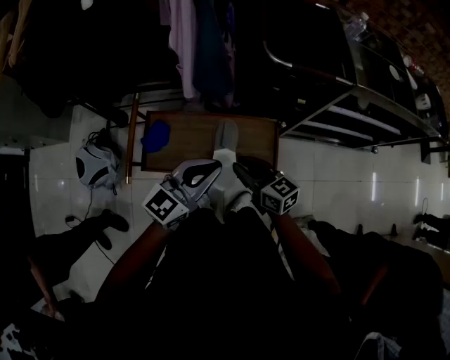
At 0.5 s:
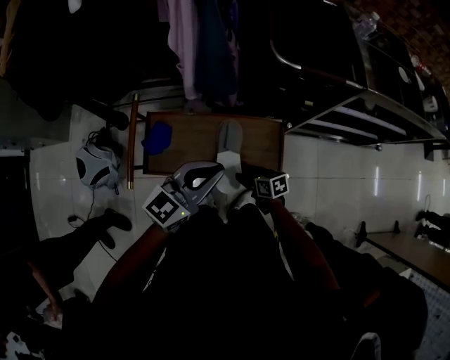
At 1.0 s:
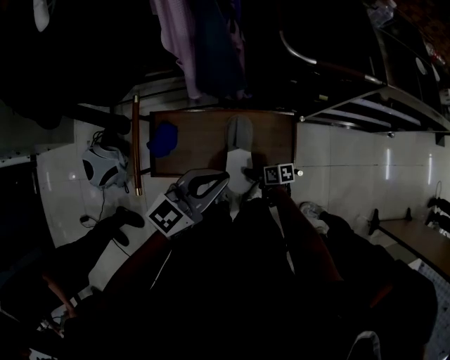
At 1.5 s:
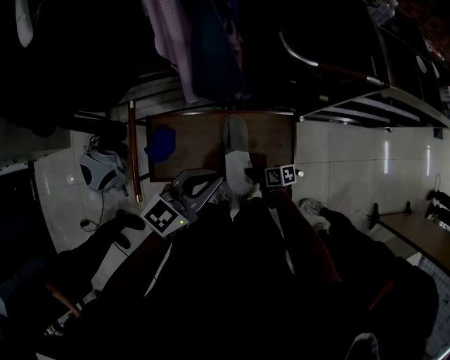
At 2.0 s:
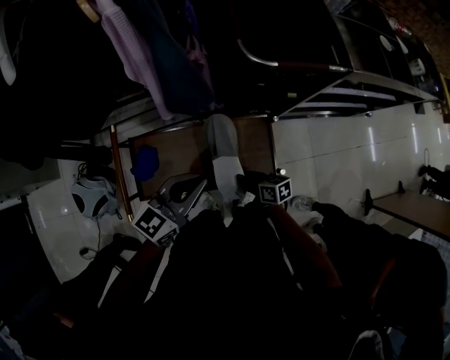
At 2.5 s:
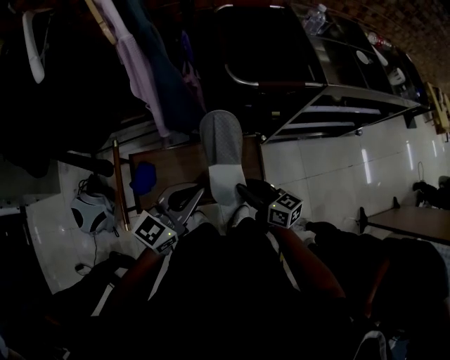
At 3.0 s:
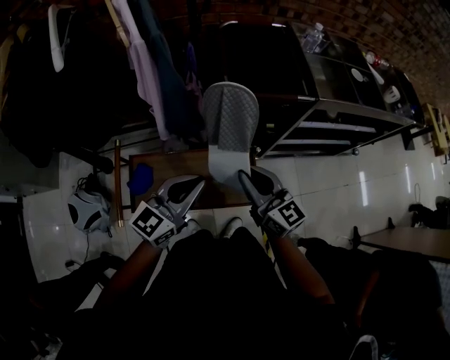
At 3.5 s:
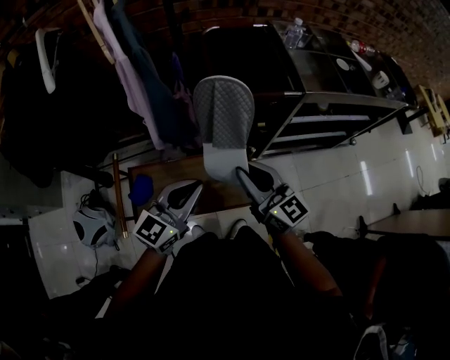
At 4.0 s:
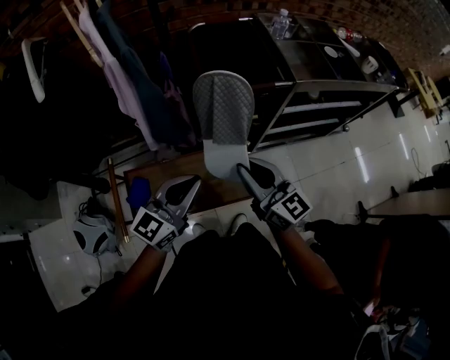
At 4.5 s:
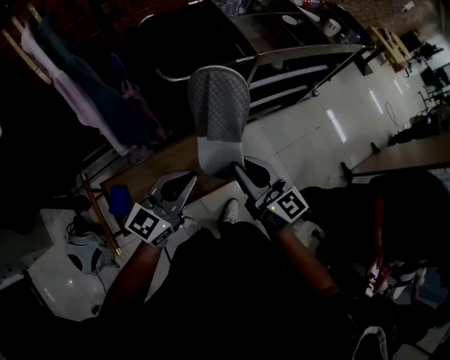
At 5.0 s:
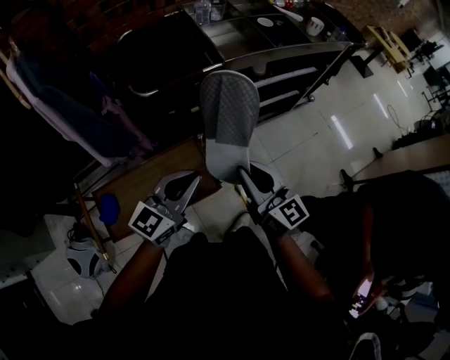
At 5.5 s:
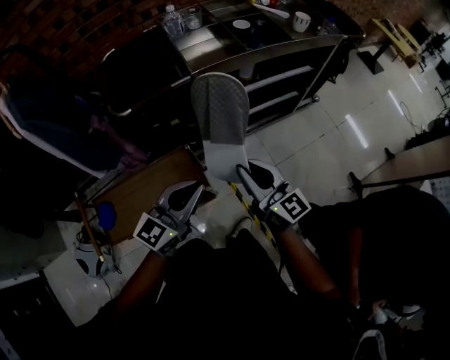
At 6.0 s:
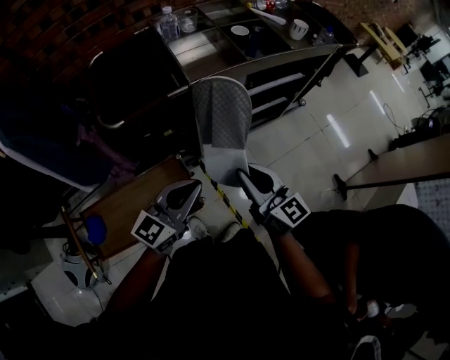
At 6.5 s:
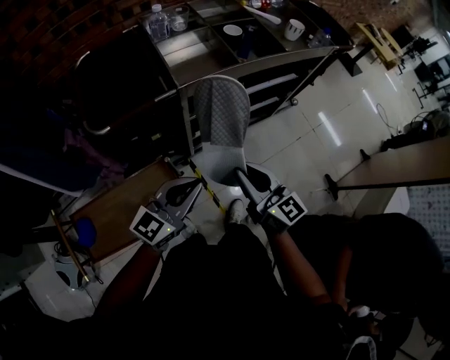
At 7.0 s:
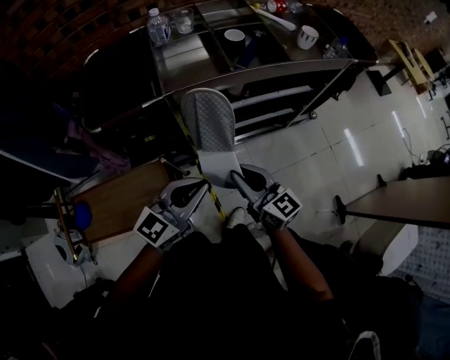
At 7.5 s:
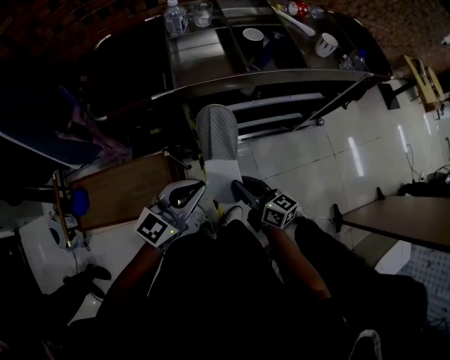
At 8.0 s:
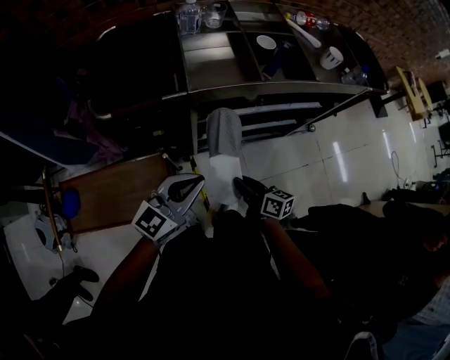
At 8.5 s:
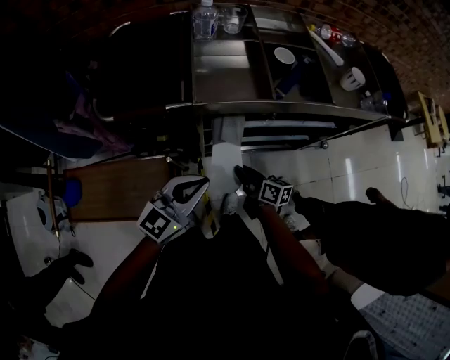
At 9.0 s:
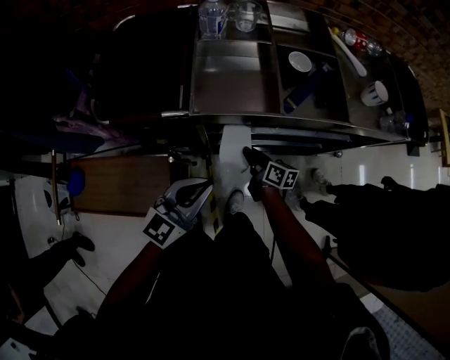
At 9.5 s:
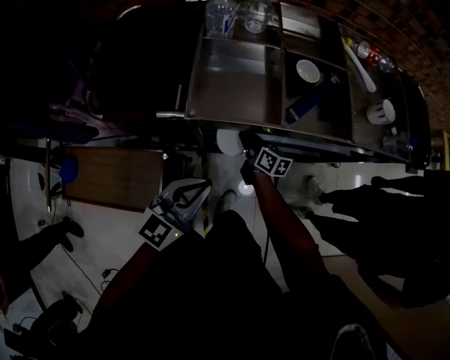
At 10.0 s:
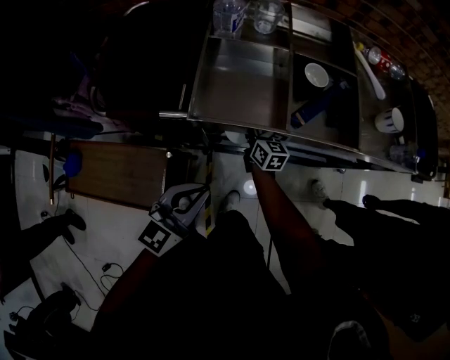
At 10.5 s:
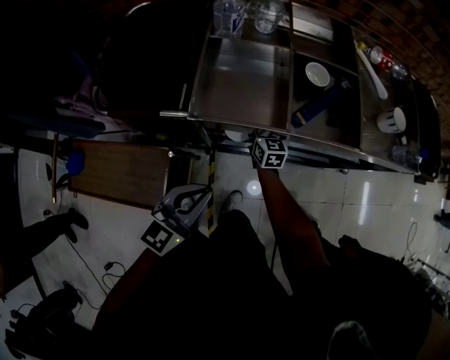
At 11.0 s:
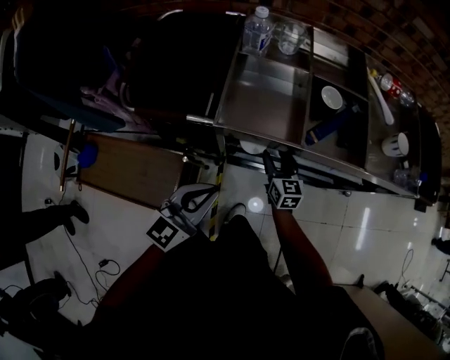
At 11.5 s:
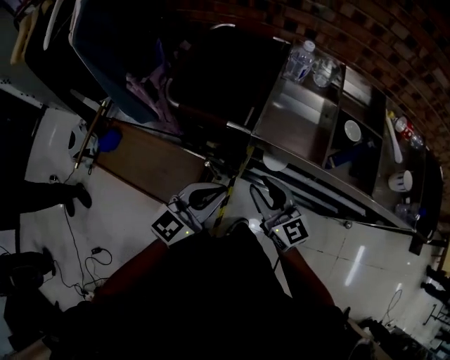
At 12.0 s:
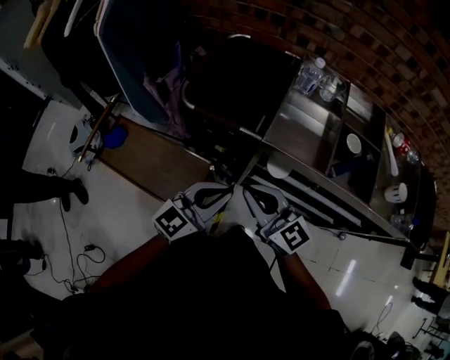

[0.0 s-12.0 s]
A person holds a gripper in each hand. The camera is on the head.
0.0 to 2.0 s: The right gripper shifts about 20 cm downward, rotates approximately 30 degrees, and opens, then closes again, while the left gripper ends up about 10 cm from where it was.
2.0 to 4.0 s: The right gripper goes roughly 35 cm upward, and tips its fingers upward by roughly 30 degrees. Meanwhile the left gripper shifts roughly 10 cm upward and to the right.
4.0 to 6.0 s: Both grippers travel together to the right, approximately 30 cm.
6.0 to 8.0 s: The right gripper shifts some 25 cm downward, forward and to the right, and changes its angle by some 40 degrees; the left gripper heads forward and to the right, covering some 10 cm.
8.0 to 10.0 s: The left gripper shifts roughly 10 cm forward and to the right, and rotates approximately 20 degrees, while the right gripper travels forward by about 35 cm, and swivels some 20 degrees.
10.0 to 12.0 s: The right gripper travels upward by some 30 cm, turns by approximately 50 degrees, and opens, then closes once more. The left gripper changes place by approximately 10 cm.

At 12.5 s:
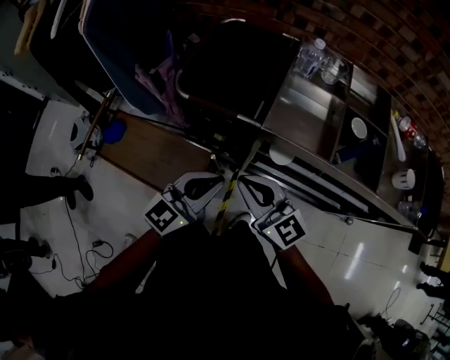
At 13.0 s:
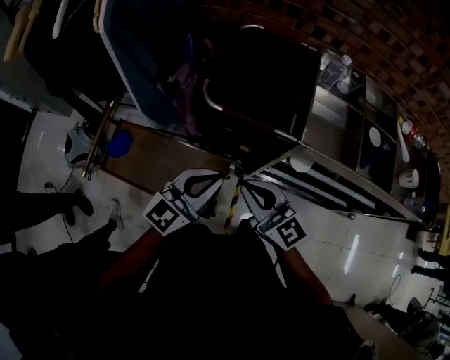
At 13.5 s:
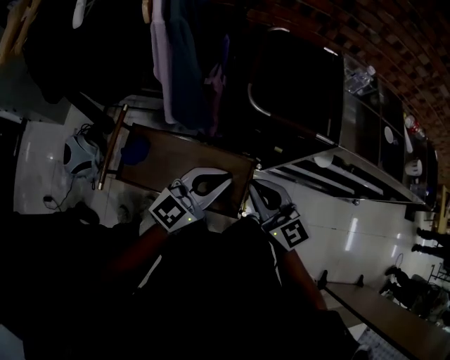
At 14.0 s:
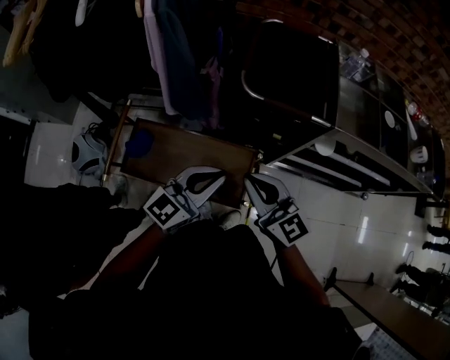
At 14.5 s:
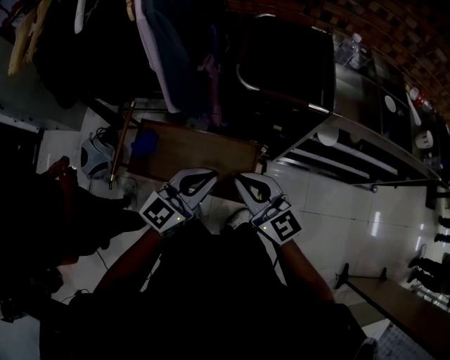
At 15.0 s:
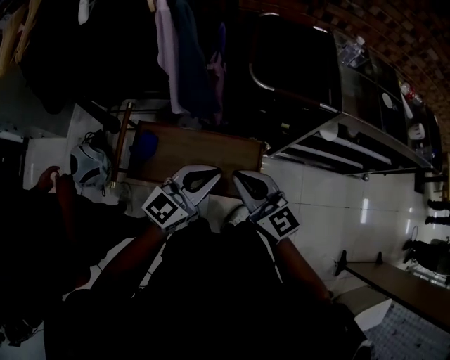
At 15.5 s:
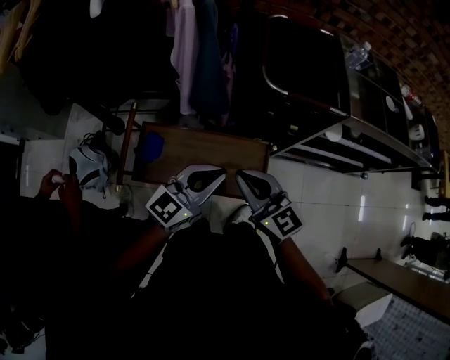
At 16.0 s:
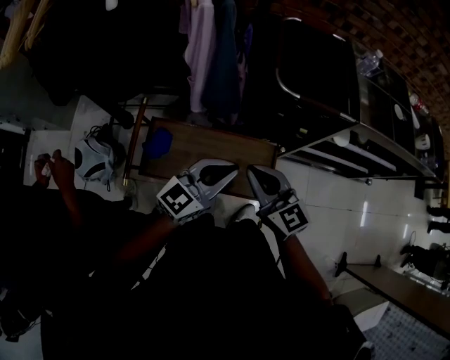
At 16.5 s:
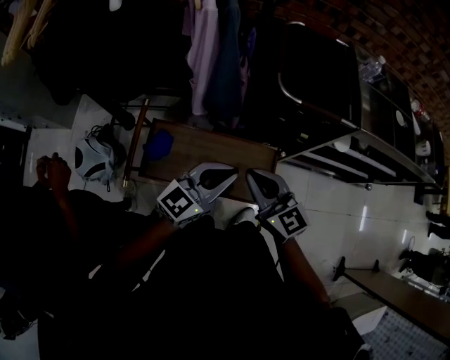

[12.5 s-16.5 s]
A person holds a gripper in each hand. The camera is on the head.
12.5 to 14.5 s: Both grippers travel together to the left, roughly 25 cm.
14.5 to 16.5 s: The grippers both shift to the left by approximately 10 cm.

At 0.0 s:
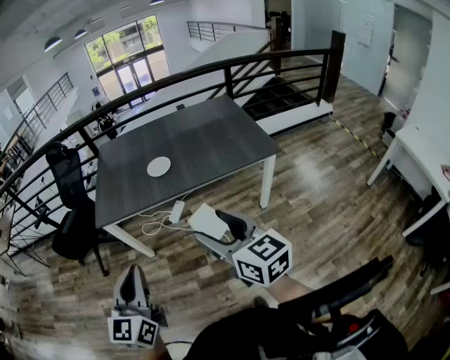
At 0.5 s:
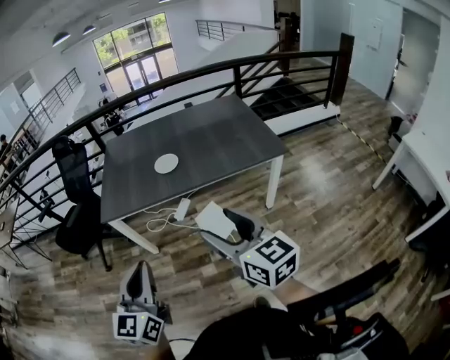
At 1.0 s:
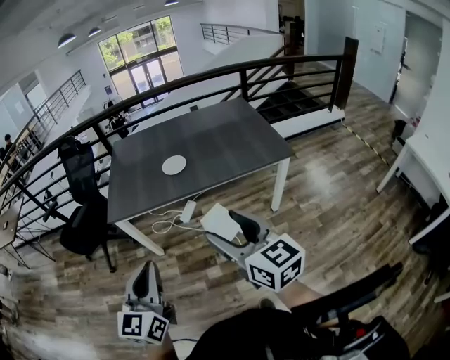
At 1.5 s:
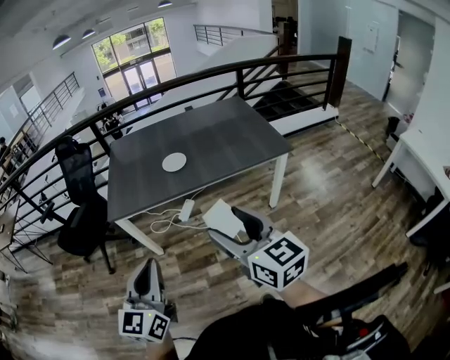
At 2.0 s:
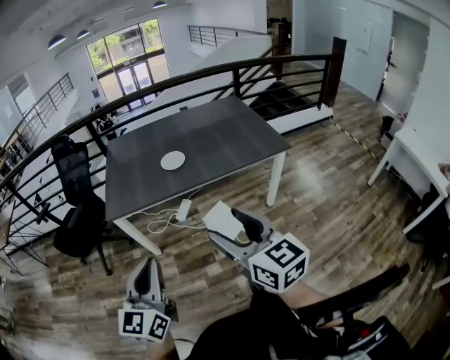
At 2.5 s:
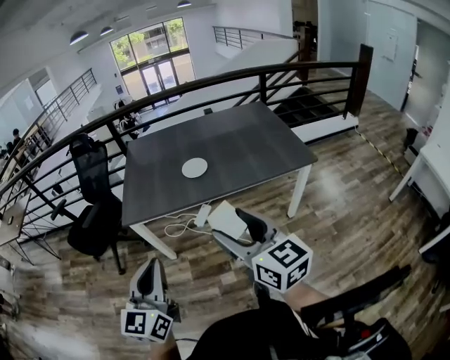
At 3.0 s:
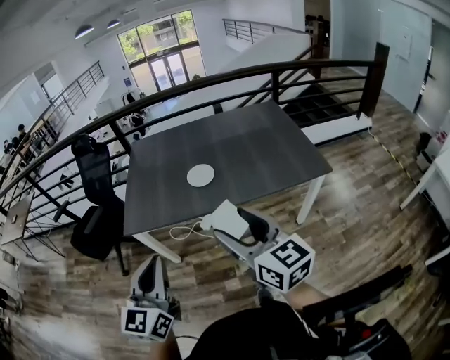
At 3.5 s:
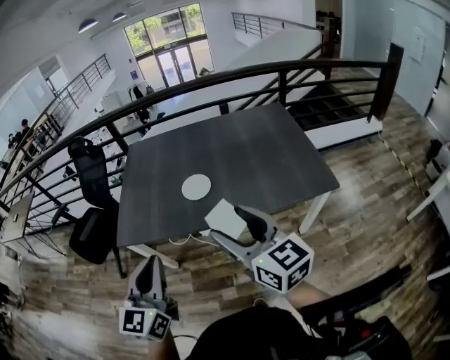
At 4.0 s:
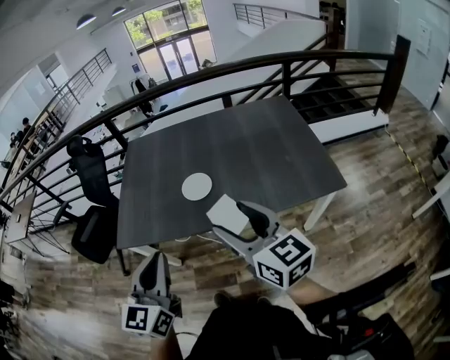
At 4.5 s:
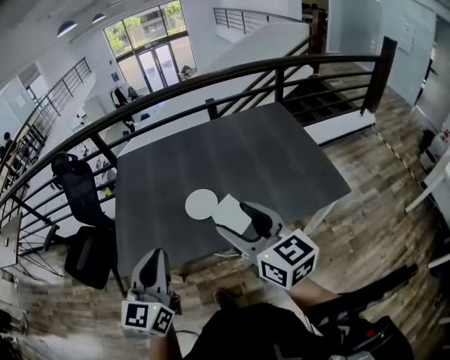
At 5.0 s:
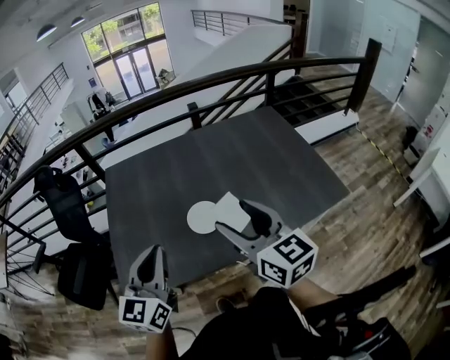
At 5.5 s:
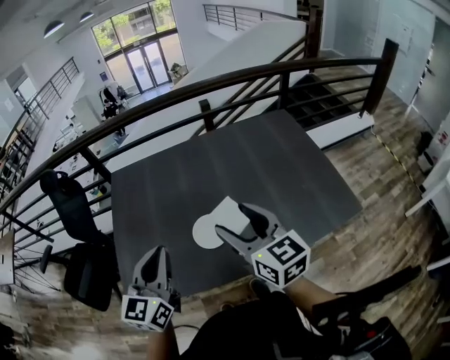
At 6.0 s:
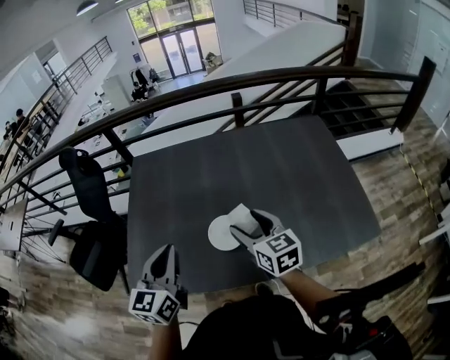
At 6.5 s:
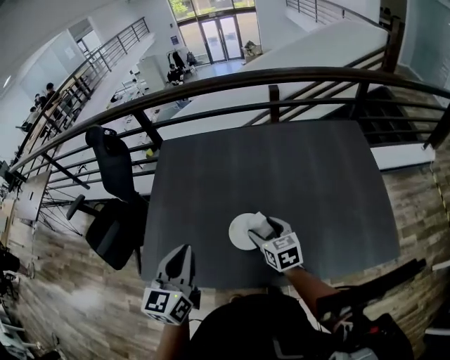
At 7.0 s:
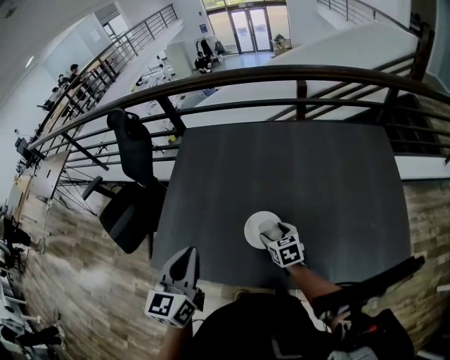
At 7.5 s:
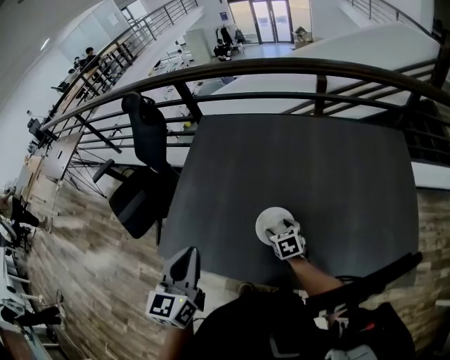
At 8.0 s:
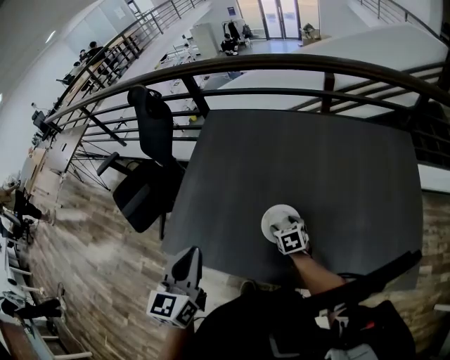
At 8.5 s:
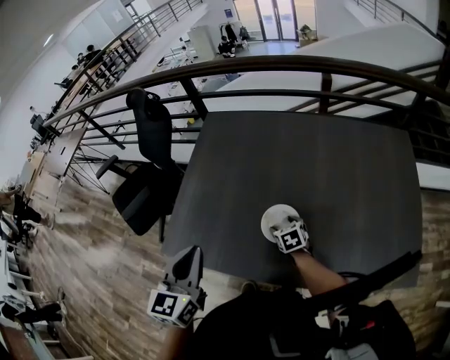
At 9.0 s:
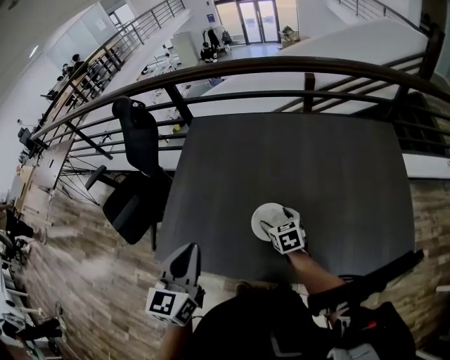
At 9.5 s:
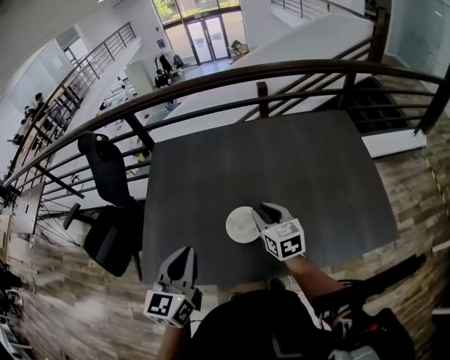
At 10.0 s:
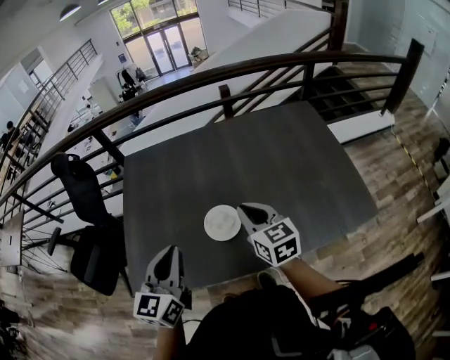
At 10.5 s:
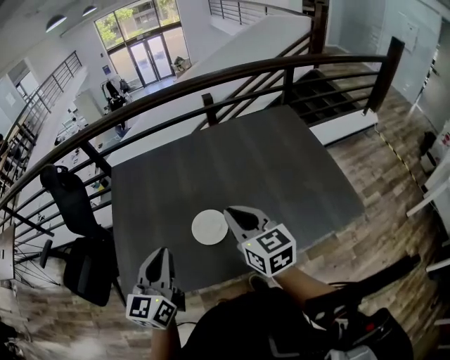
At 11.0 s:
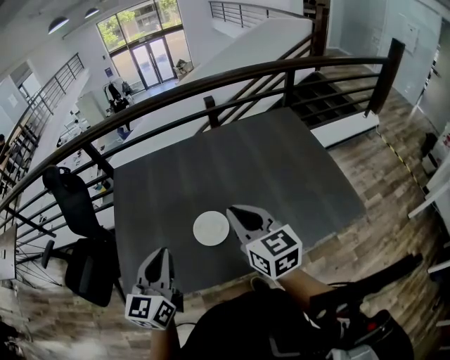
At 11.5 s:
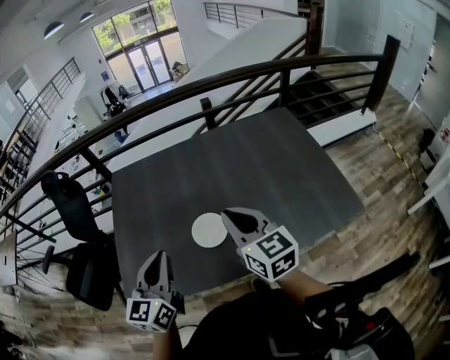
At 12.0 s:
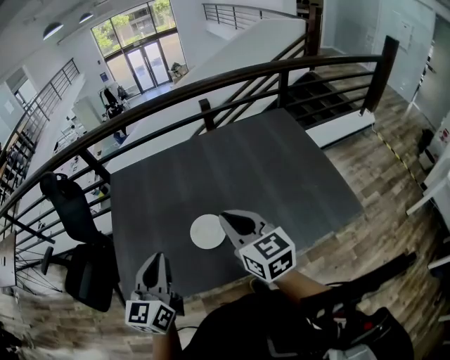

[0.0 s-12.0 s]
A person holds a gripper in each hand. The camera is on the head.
0.0 to 2.0 s: The two grippers go some 10 cm to the left.
2.0 to 4.0 s: The right gripper is displaced forward by approximately 35 cm; the left gripper travels forward and to the right by approximately 35 cm.
4.0 to 6.0 s: Both grippers move forward, approximately 35 cm.
6.0 to 8.0 s: The left gripper heads to the left, covering about 5 cm, and turns by approximately 20 degrees, while the right gripper is displaced downward by approximately 25 cm, and tilts its fingers roughly 30 degrees downward.
8.0 to 10.0 s: The right gripper heads upward, covering roughly 25 cm, points its fingers approximately 30 degrees further upward, and closes up, while the left gripper shifts by approximately 5 cm, and turns by approximately 30 degrees.
10.0 to 12.0 s: The right gripper heads upward, covering about 10 cm.
